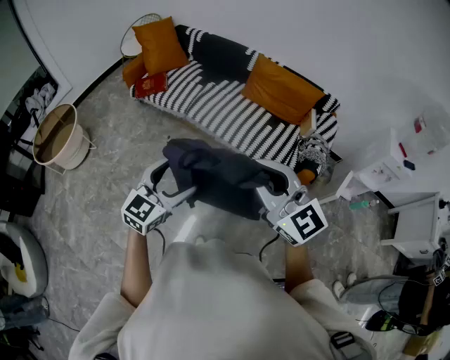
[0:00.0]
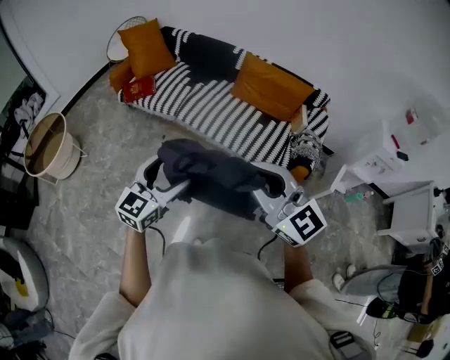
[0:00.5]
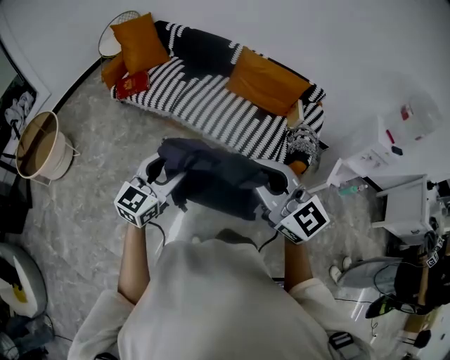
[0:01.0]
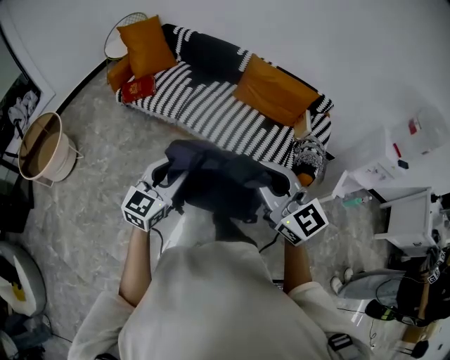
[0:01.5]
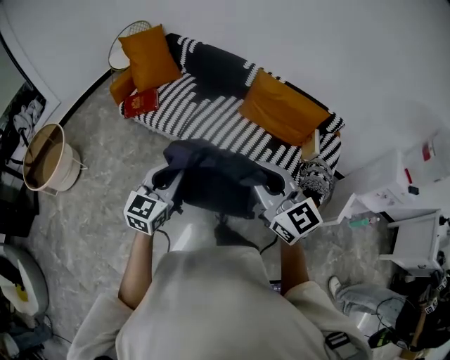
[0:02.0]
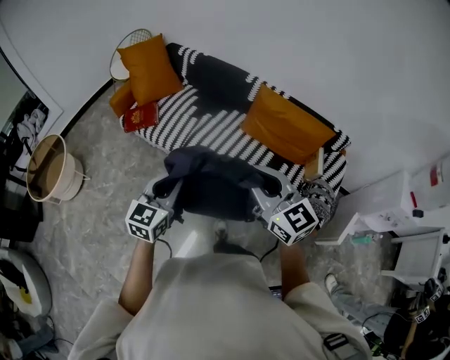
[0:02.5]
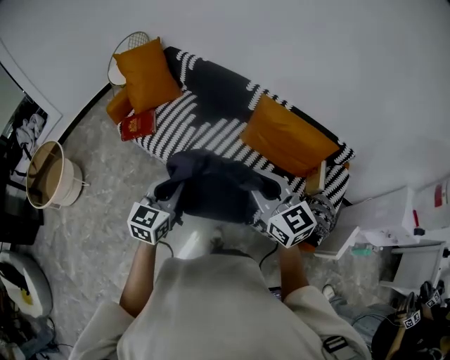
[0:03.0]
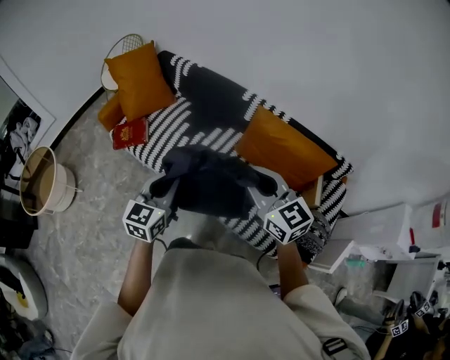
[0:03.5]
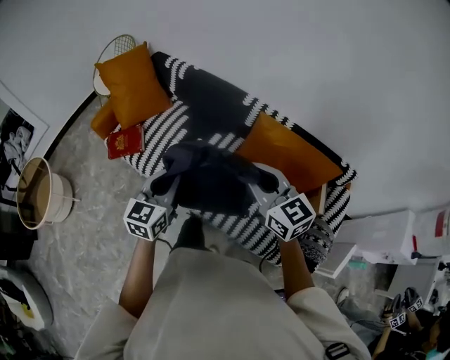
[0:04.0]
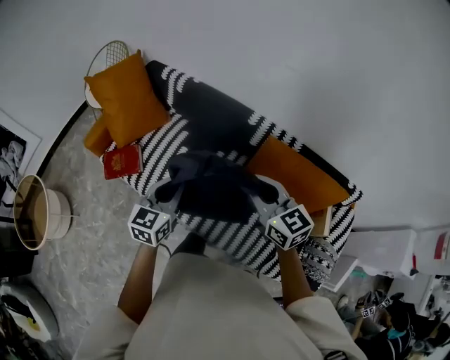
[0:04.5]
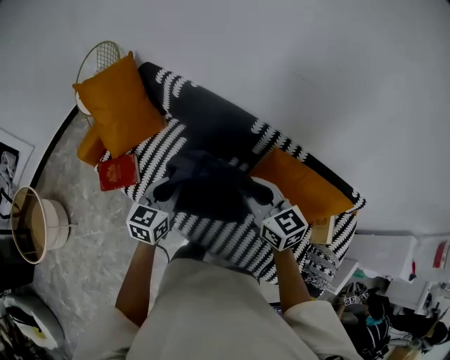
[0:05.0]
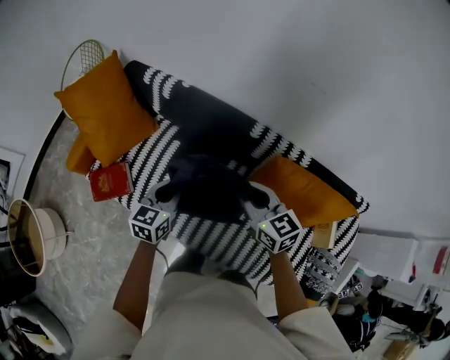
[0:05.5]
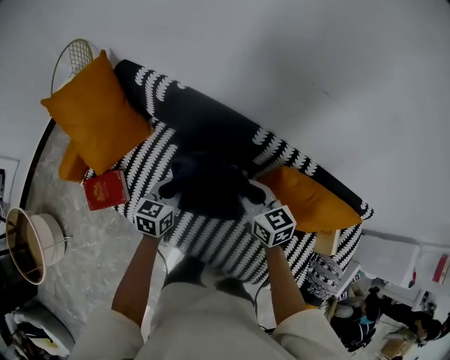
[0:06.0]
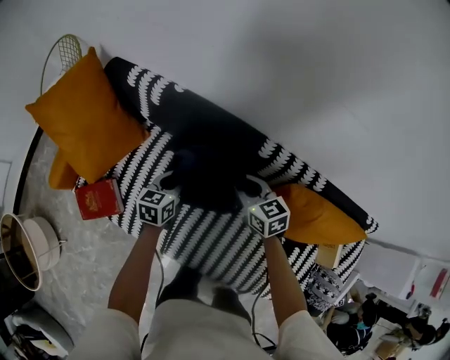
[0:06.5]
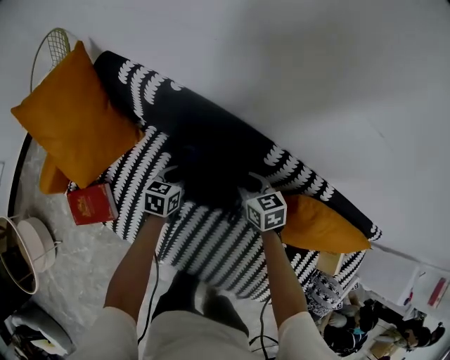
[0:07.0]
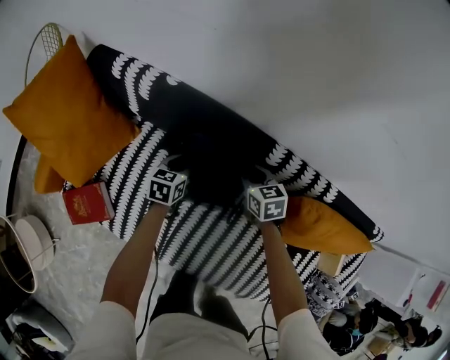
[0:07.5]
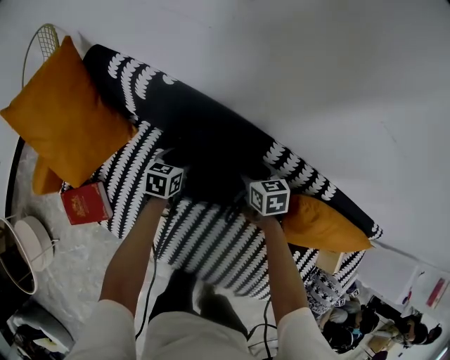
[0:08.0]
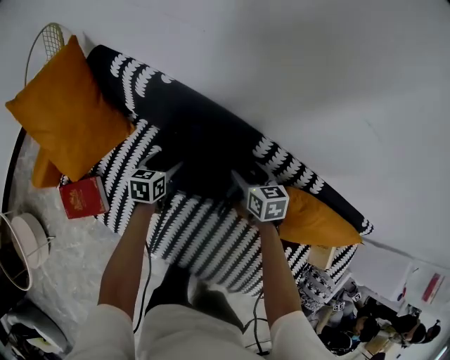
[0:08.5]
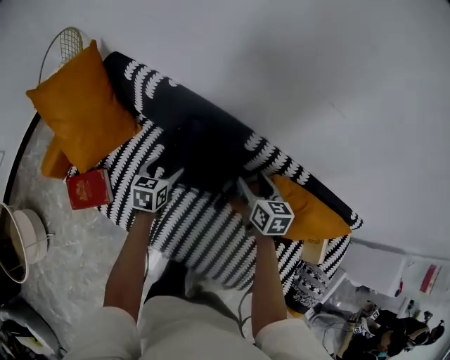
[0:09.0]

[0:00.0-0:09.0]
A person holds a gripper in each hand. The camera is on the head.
0:00.0 to 0:02.0: Both grippers travel together forward, some 25 cm. The left gripper closes its fingers.
0:02.0 to 0:04.5: Both grippers are carried forward, some 60 cm.
0:04.5 to 0:07.0: The two grippers travel together, forward, approximately 40 cm. Both grippers travel together downward, about 40 cm. The left gripper turns by some 30 degrees. Meanwhile the right gripper rotates some 30 degrees.
0:07.0 to 0:09.0: The right gripper shifts approximately 15 cm upward, backward and to the right, and opens up, while the left gripper heads upward and backward, covering approximately 15 cm, and opens.

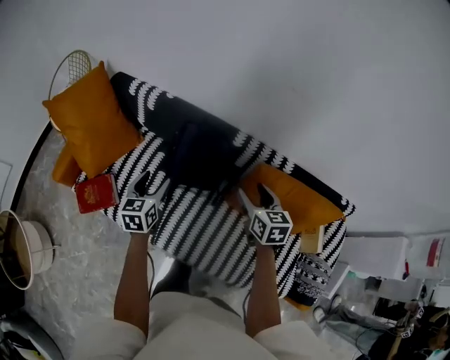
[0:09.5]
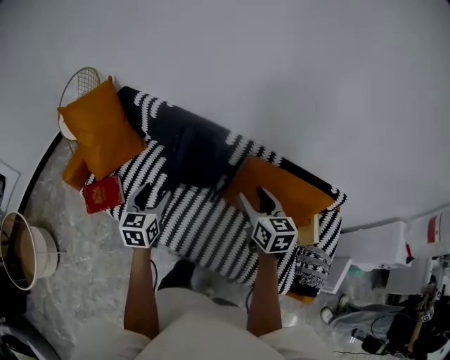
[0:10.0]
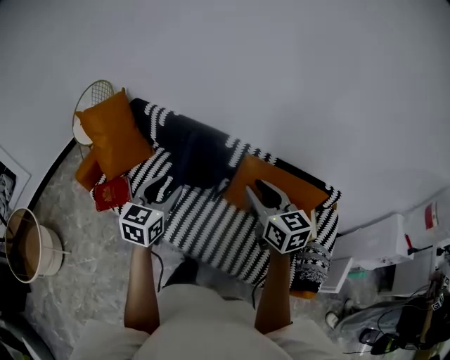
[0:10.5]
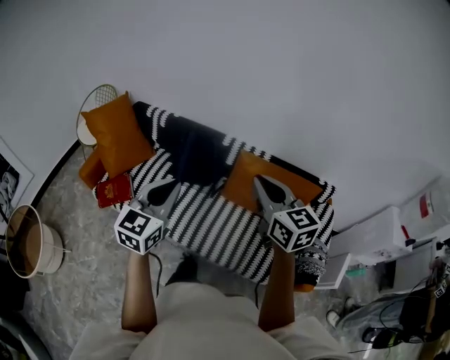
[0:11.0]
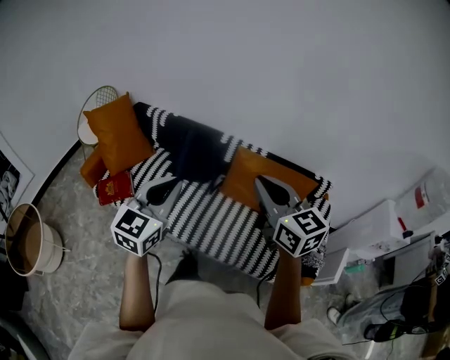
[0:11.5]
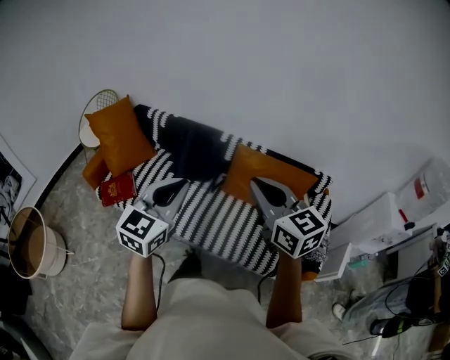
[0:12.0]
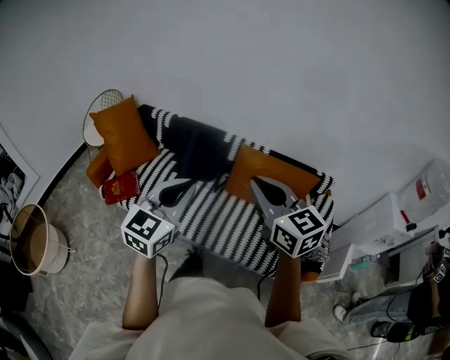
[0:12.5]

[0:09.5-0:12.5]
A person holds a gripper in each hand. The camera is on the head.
0:09.5 to 0:11.0: Both grippers travel together backward and upward, some 50 cm. The right gripper changes its angle by about 30 degrees, and closes. The left gripper swivels about 30 degrees, and closes.
0:11.0 to 0:12.5: Both grippers travel together backward, about 10 cm.

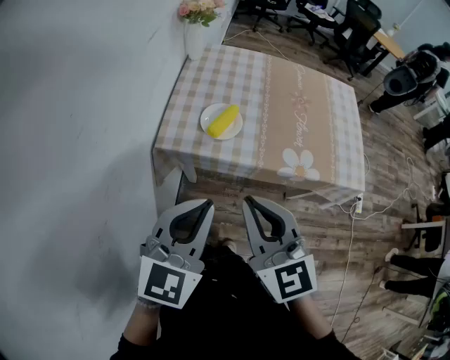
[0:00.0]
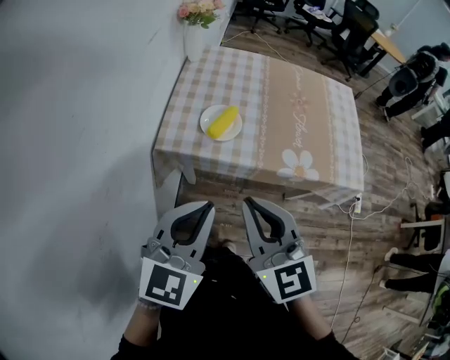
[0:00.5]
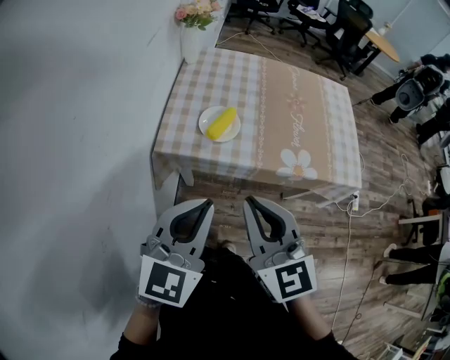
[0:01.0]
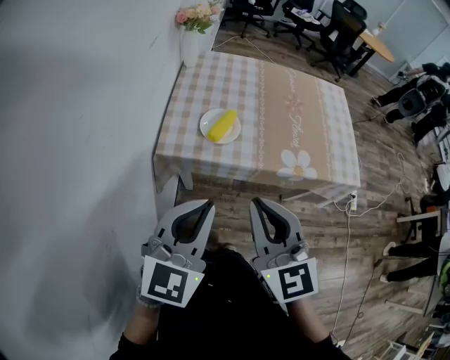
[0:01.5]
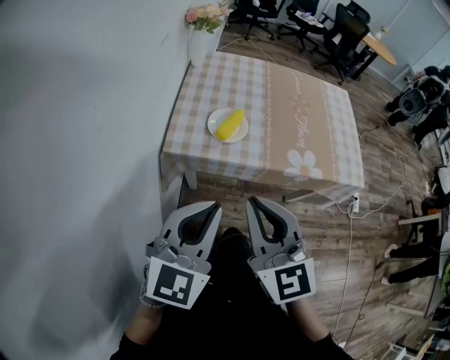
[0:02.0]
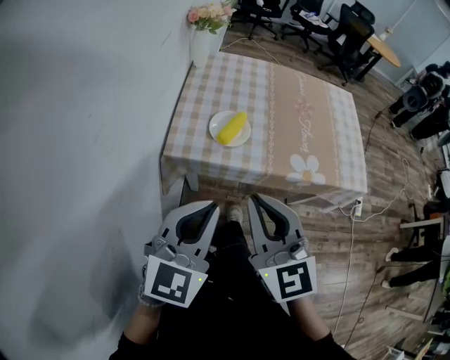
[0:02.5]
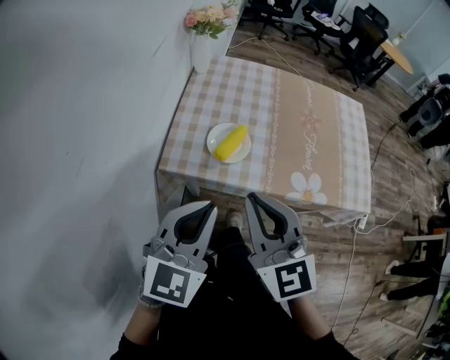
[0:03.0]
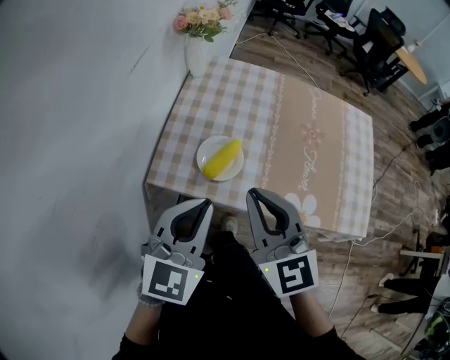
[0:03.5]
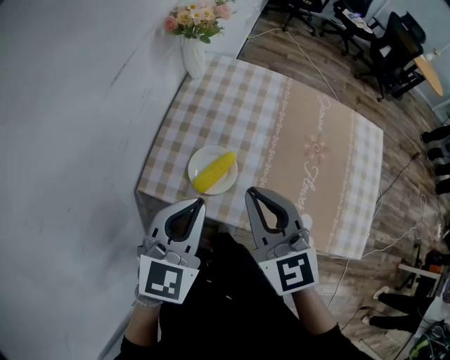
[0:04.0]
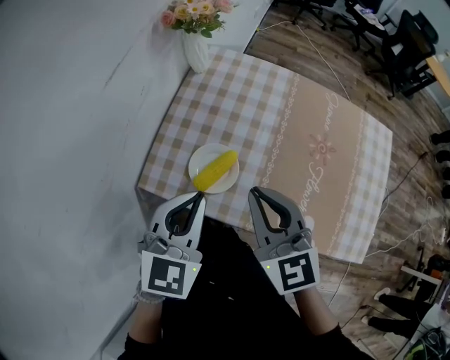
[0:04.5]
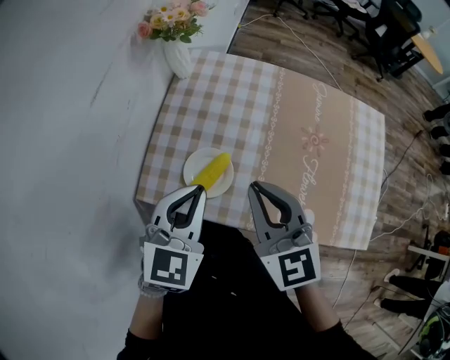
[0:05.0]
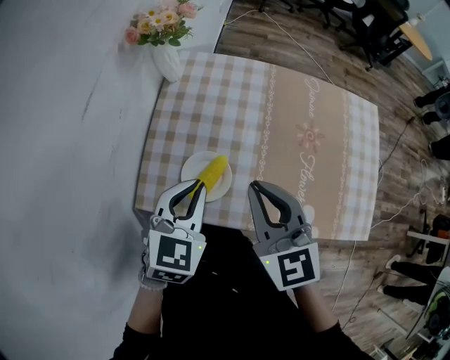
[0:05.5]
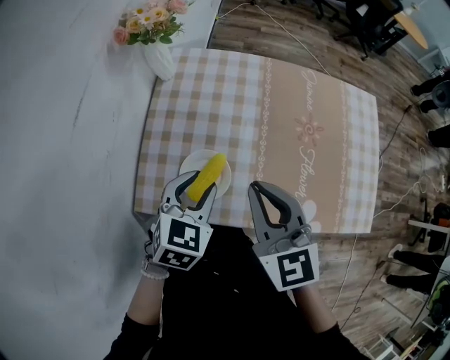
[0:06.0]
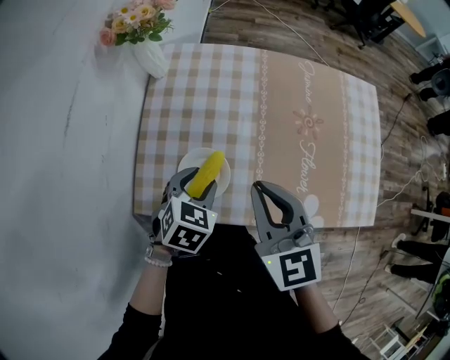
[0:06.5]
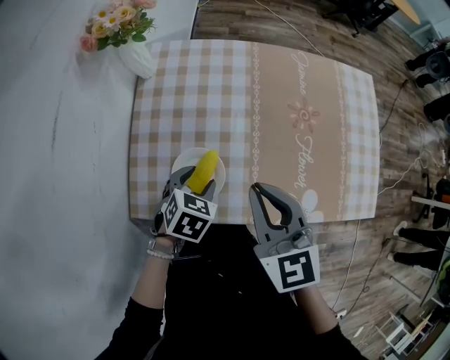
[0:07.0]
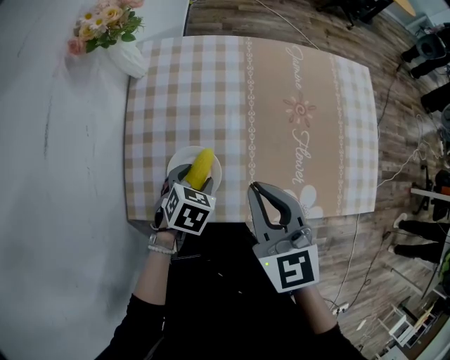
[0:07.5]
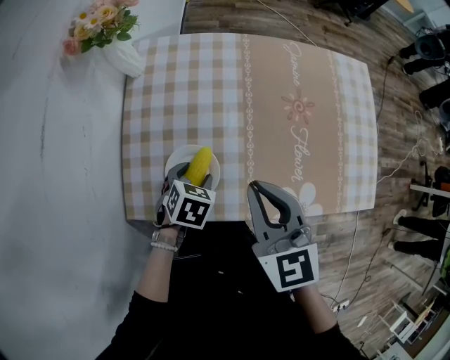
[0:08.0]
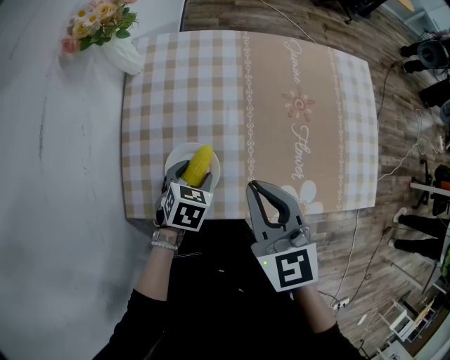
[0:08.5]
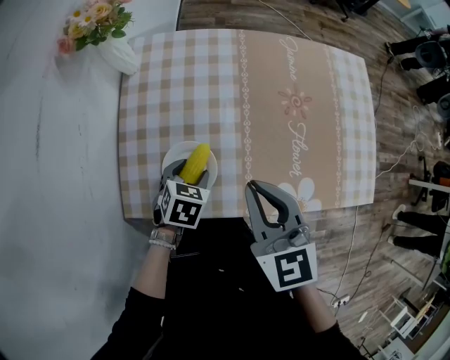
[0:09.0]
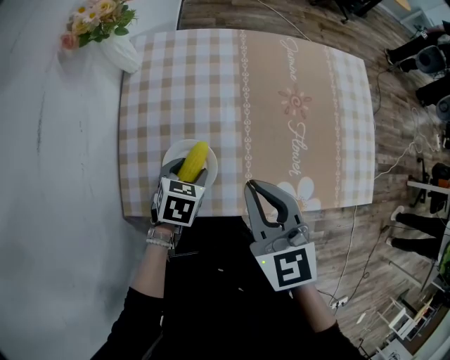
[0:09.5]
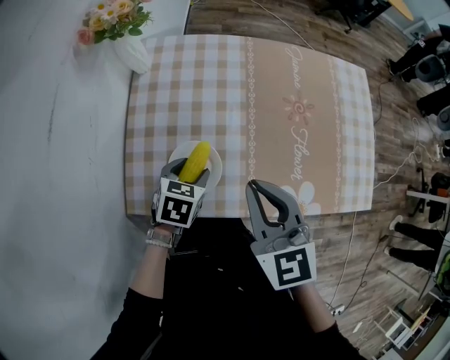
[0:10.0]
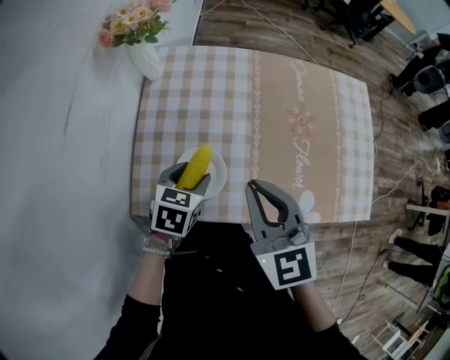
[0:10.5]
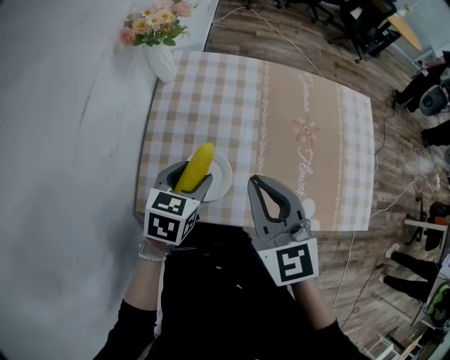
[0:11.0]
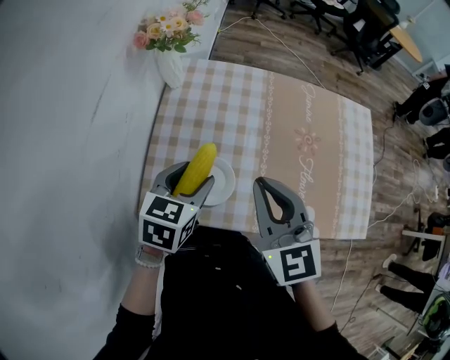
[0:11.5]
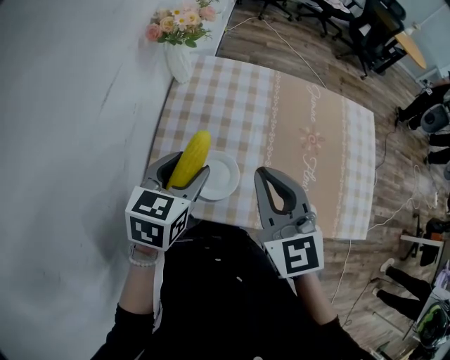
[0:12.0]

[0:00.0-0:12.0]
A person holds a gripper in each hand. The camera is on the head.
0:00.0 to 0:02.0: There are only small adjustments of the grippers.
0:02.0 to 0:04.0: Both grippers travel together forward, about 25 cm. The left gripper changes its angle by about 20 degrees.
0:04.0 to 0:06.0: The right gripper changes place by some 5 cm; the left gripper shifts approximately 15 cm downward and forward, rotates approximately 20 degrees, and opens up.
0:06.0 to 0:08.0: The left gripper shifts some 15 cm downward, swivels roughly 20 degrees, and opens its fingers.
0:08.0 to 0:10.0: The grippers make only small movements.
0:10.0 to 0:12.0: The right gripper shifts roughly 5 cm upward. The left gripper heads upward and to the left, covering roughly 20 cm, and turns by approximately 20 degrees.

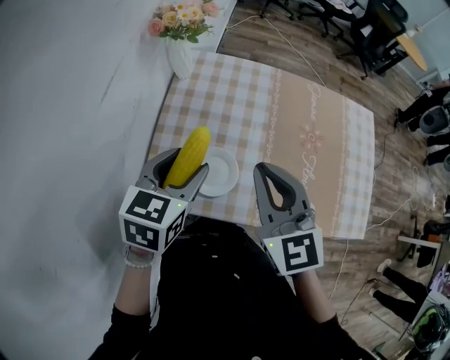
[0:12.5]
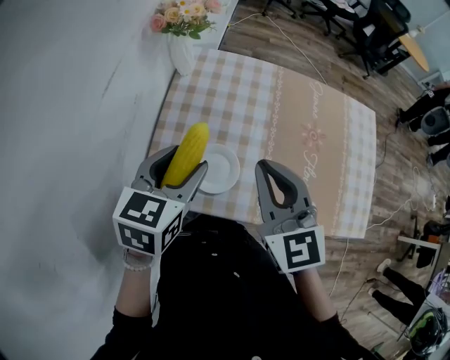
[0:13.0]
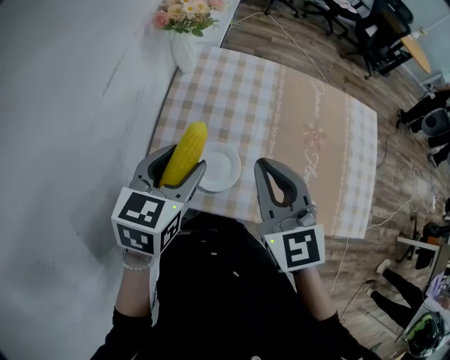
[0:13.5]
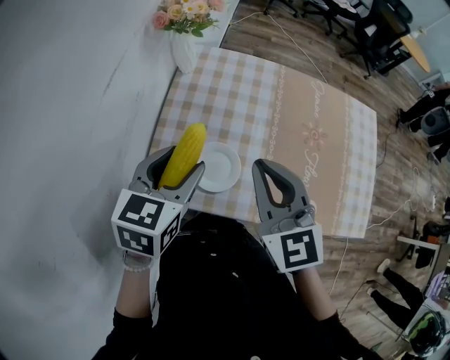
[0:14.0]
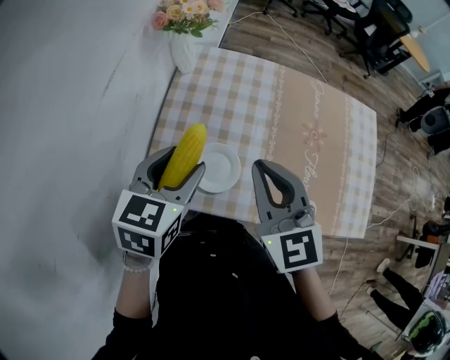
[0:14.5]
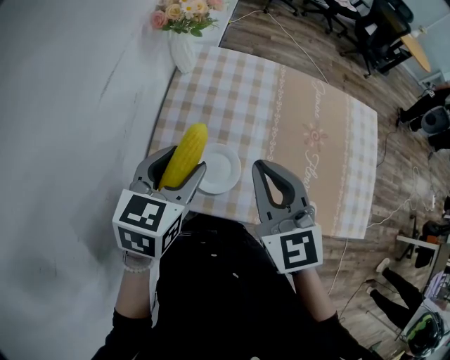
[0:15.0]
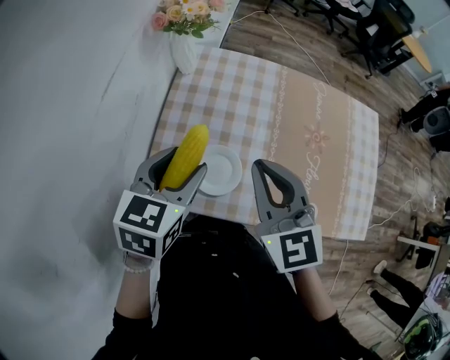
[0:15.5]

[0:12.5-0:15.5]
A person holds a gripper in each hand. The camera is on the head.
0:12.5 to 0:15.5: The grippers make only small movements.
